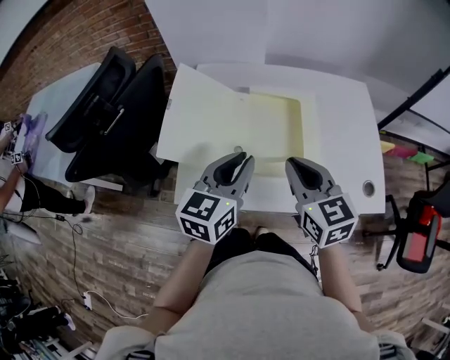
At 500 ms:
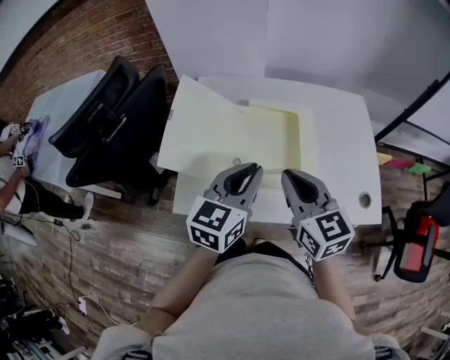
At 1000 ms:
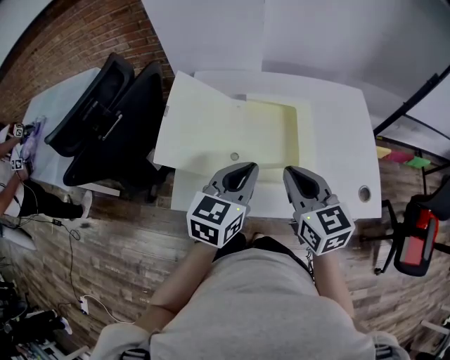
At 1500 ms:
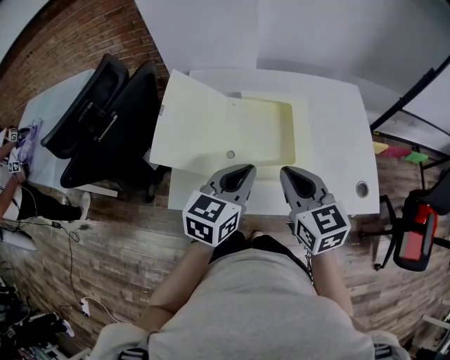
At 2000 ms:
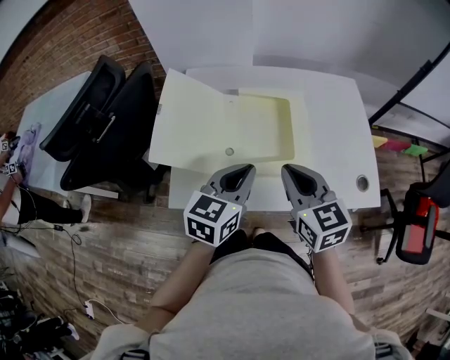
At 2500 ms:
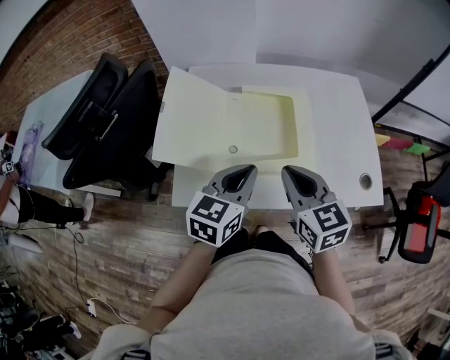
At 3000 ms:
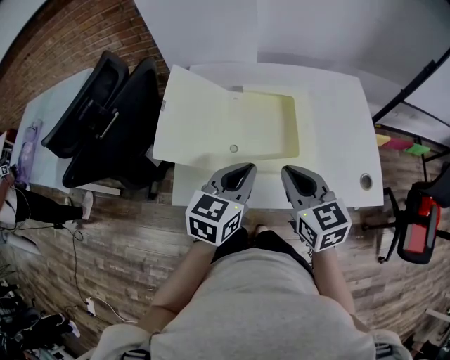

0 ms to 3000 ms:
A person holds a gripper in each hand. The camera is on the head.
0 ms to 3000 ms: The grippers move only a little.

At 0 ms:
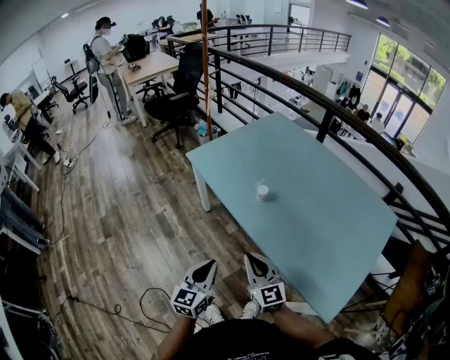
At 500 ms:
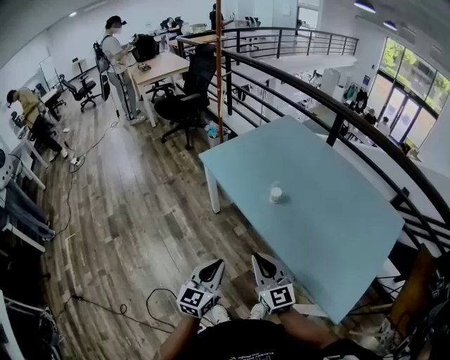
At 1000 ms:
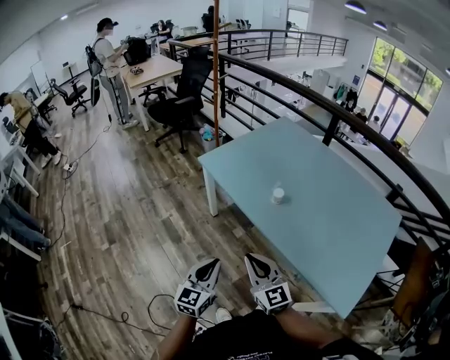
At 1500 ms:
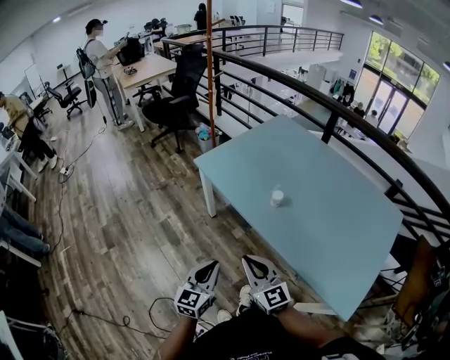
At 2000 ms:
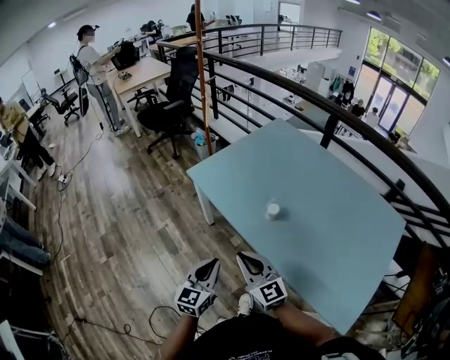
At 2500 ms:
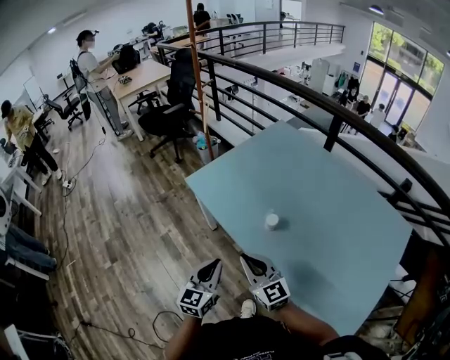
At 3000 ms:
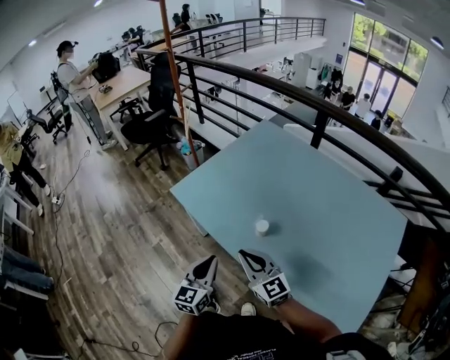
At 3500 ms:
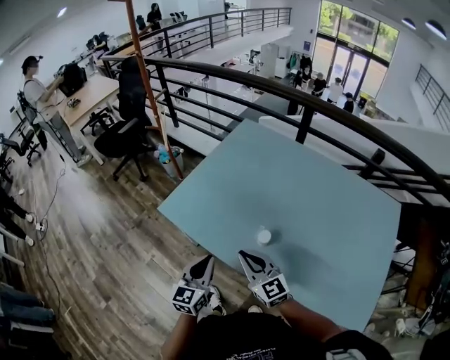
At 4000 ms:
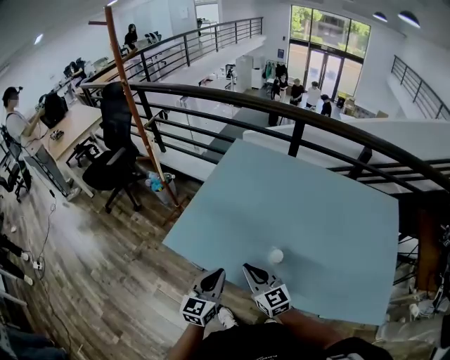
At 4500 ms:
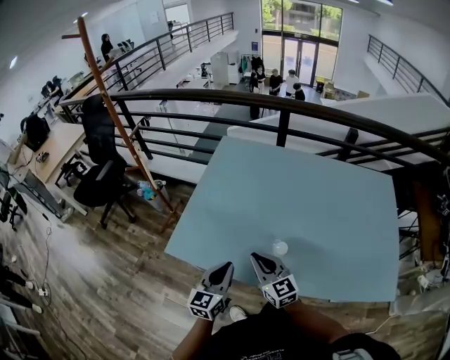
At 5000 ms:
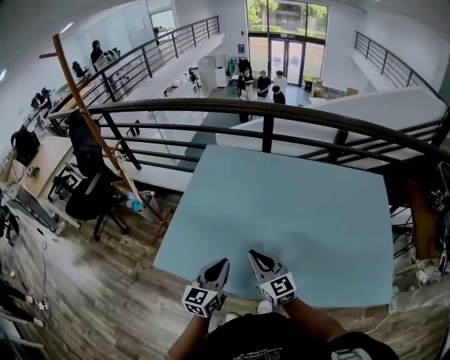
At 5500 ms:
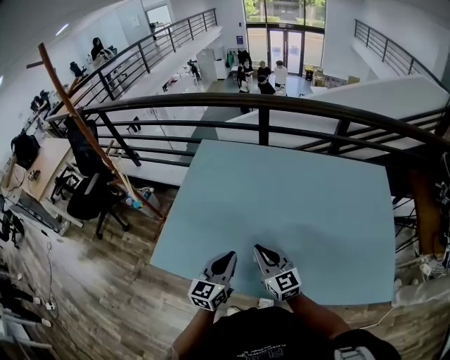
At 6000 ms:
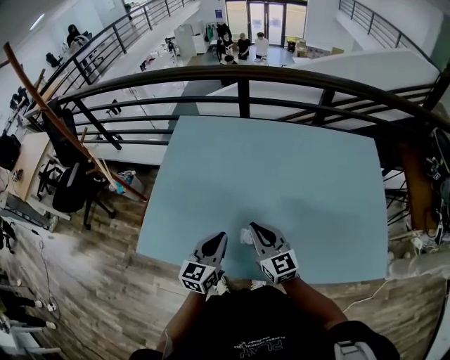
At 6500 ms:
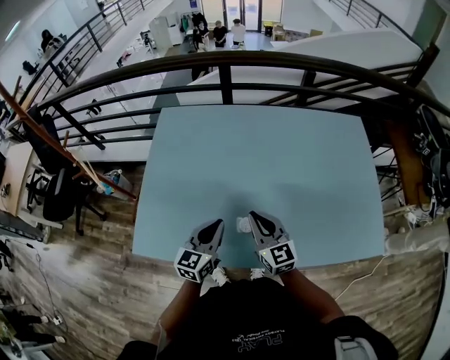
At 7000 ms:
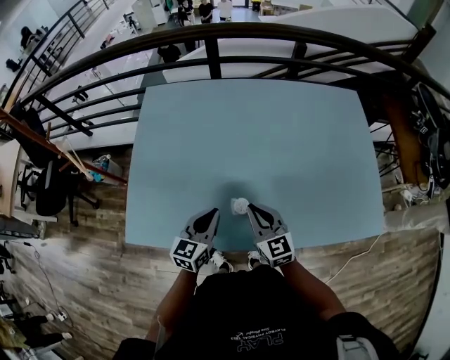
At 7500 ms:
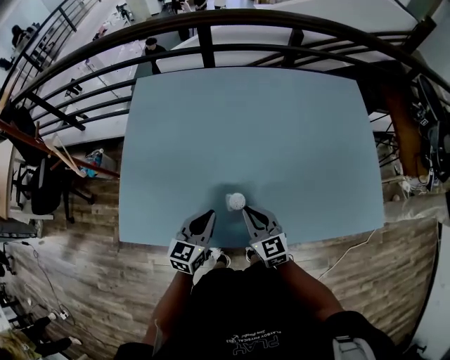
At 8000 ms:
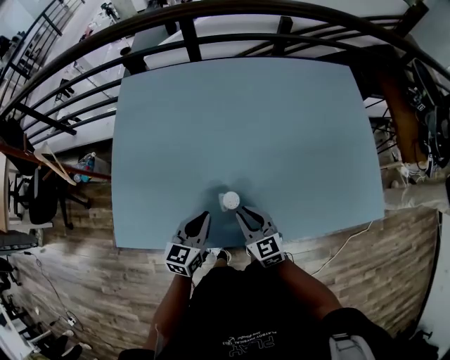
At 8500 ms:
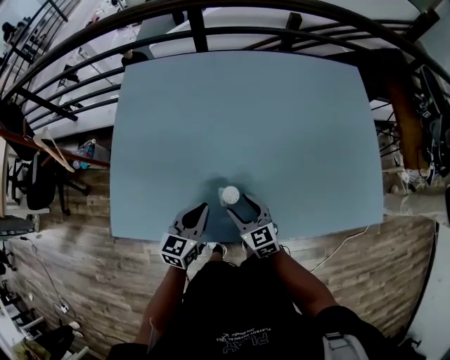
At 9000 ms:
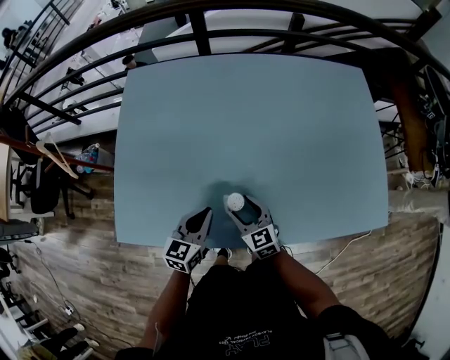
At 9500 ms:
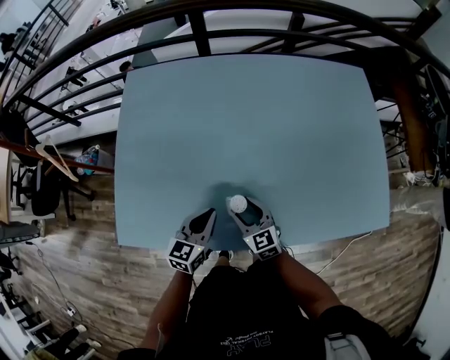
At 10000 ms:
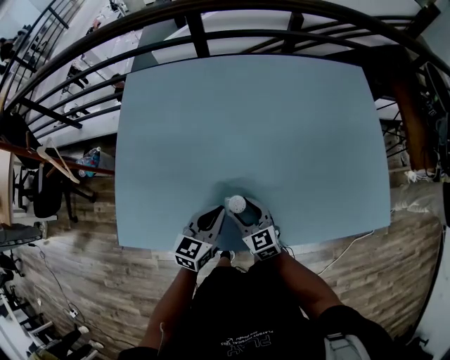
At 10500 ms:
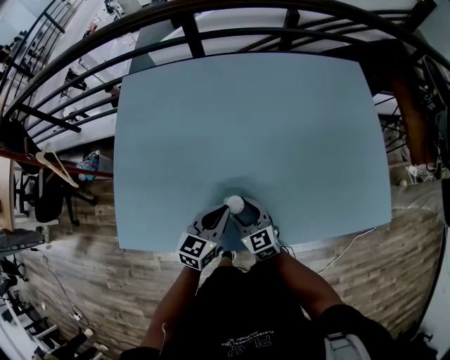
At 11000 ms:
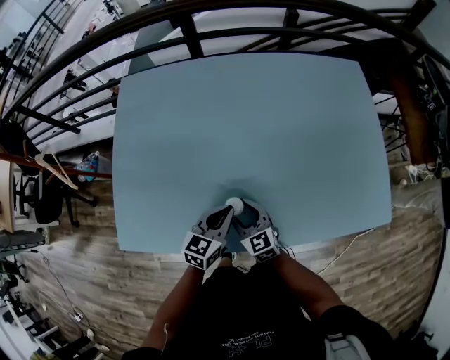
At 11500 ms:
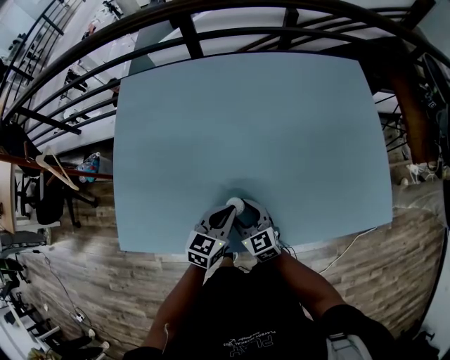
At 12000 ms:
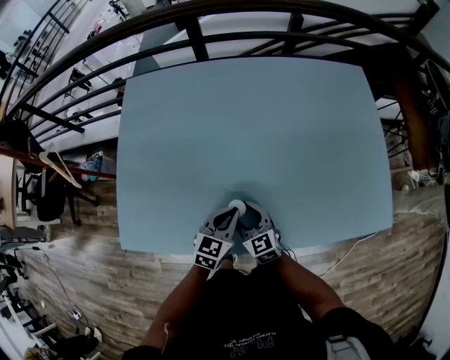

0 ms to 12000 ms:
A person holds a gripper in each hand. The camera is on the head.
0 ms to 2000 ms: The right gripper moves forward and to the left, some 15 cm. Meanwhile the left gripper goes some 15 cm forward.
2000 ms to 4000 ms: The two grippers go approximately 25 cm forward. The right gripper turns by roughly 30 degrees, while the left gripper swivels roughly 20 degrees.
4000 ms to 6000 ms: The two grippers go roughly 15 cm to the right and forward. The right gripper changes its angle by some 20 degrees.
6000 ms to 8000 ms: The grippers both shift downward by approximately 10 cm.
8000 ms to 10000 ms: The right gripper moves some 5 cm, and opens.
10000 ms to 12000 ms: The left gripper travels to the right by some 5 cm.

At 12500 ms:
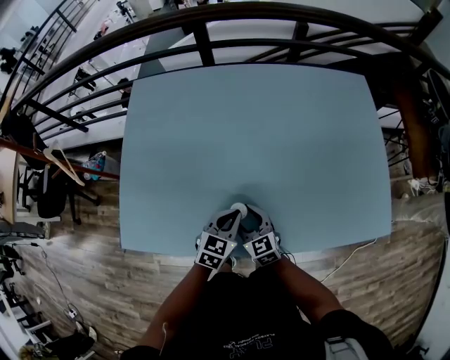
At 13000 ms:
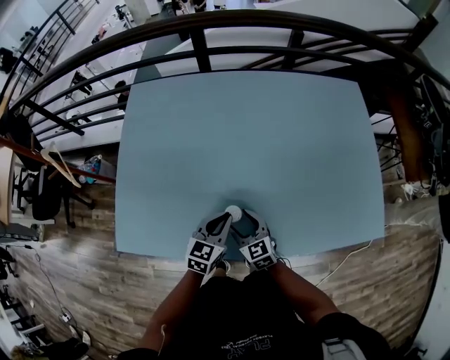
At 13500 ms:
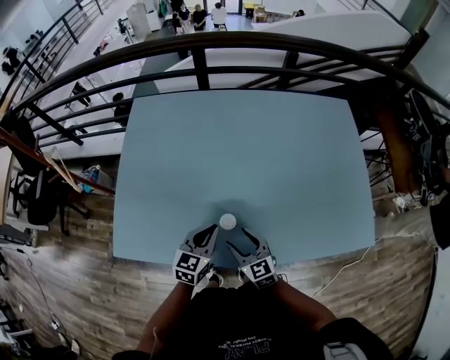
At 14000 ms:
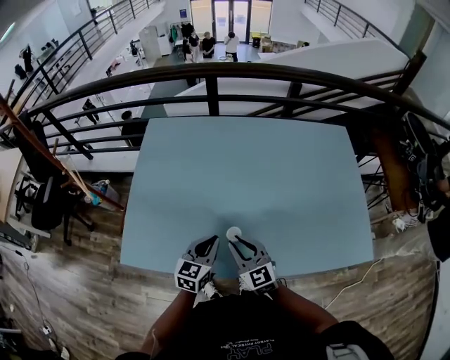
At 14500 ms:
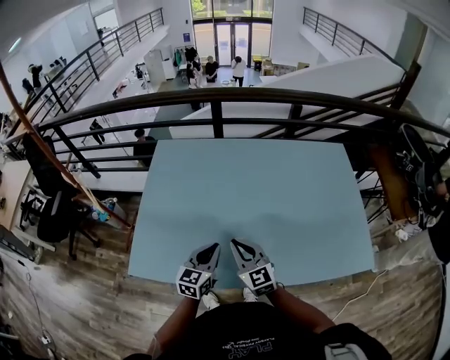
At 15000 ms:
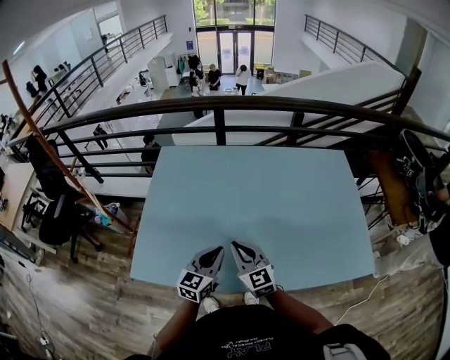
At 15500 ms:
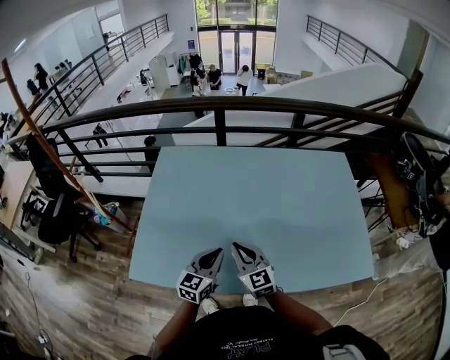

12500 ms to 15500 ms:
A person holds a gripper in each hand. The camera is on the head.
12500 ms to 14000 ms: The right gripper heads upward, covering about 15 cm, and closes up. The left gripper is displaced upward and to the left by approximately 10 cm.
14000 ms to 15500 ms: The left gripper goes approximately 5 cm upward; the right gripper shifts by some 5 cm.

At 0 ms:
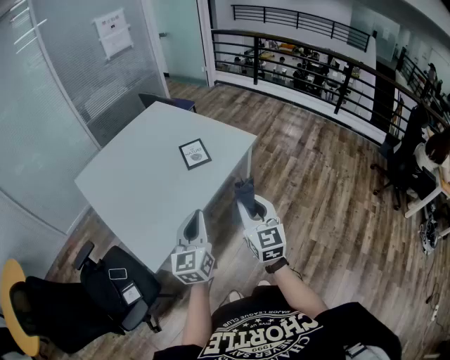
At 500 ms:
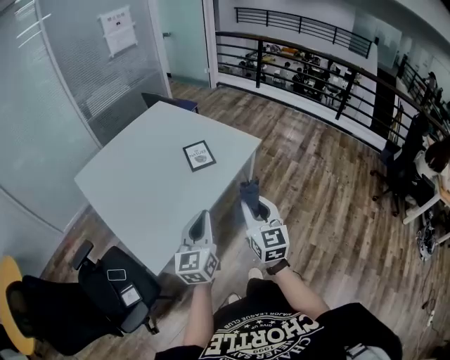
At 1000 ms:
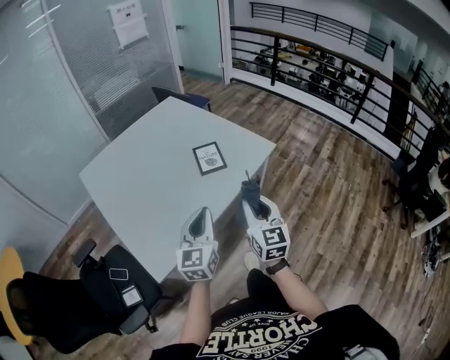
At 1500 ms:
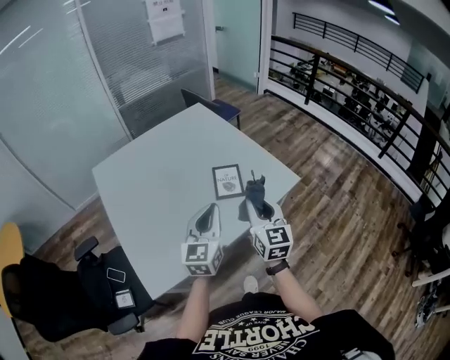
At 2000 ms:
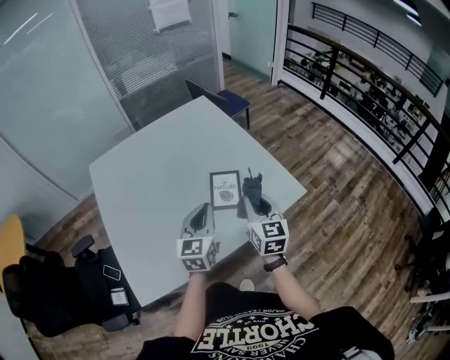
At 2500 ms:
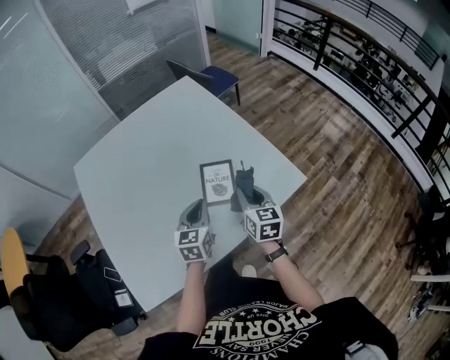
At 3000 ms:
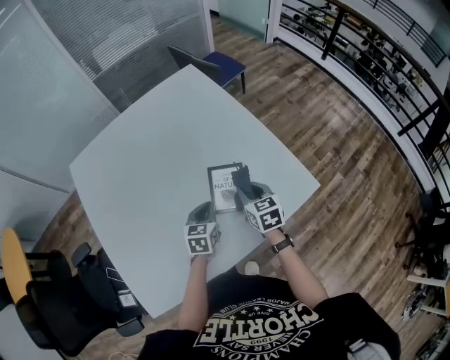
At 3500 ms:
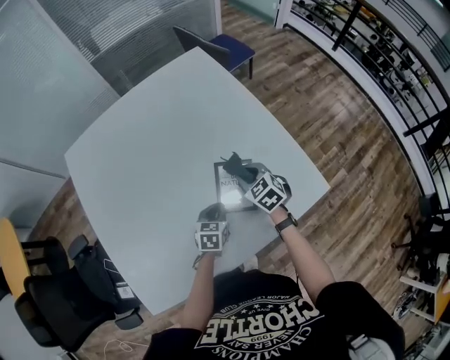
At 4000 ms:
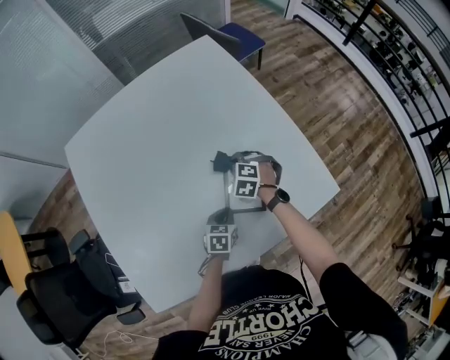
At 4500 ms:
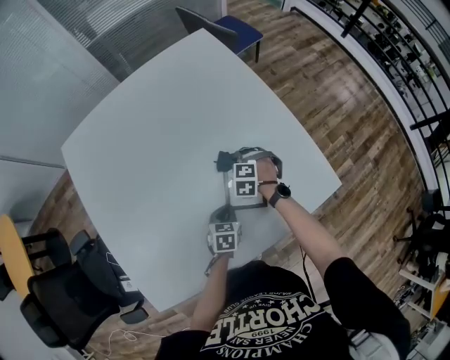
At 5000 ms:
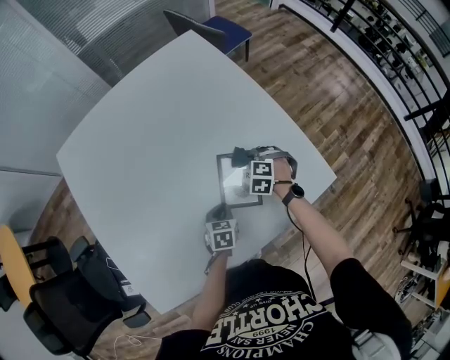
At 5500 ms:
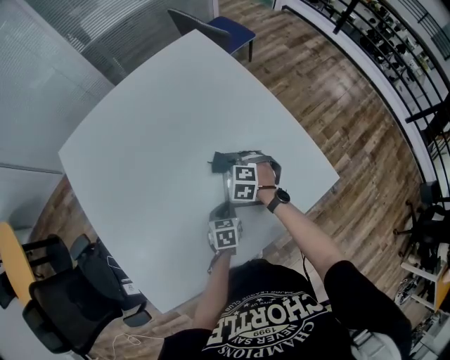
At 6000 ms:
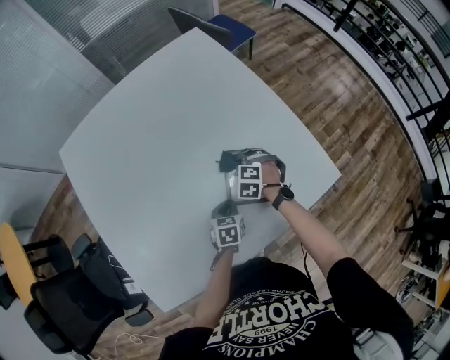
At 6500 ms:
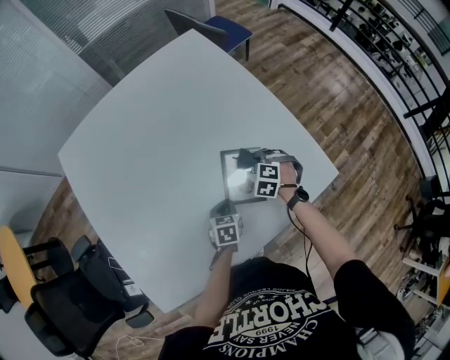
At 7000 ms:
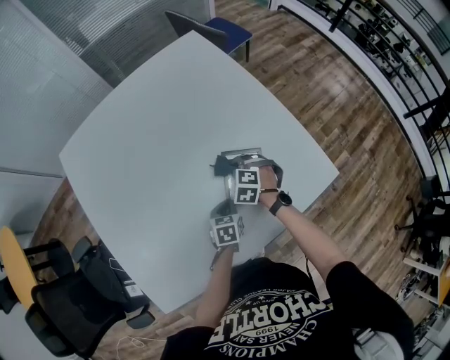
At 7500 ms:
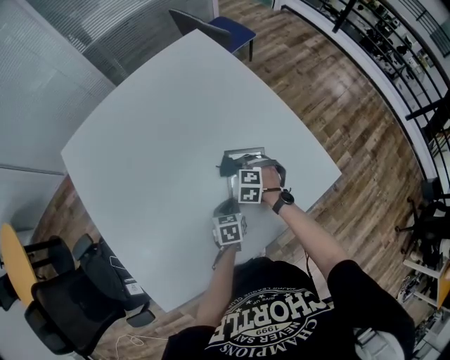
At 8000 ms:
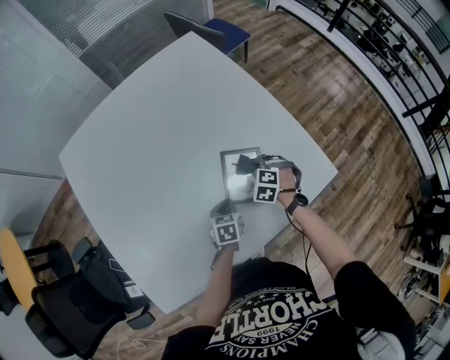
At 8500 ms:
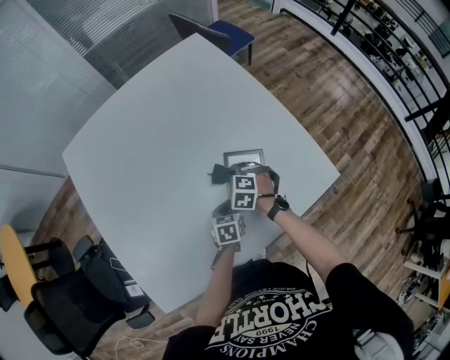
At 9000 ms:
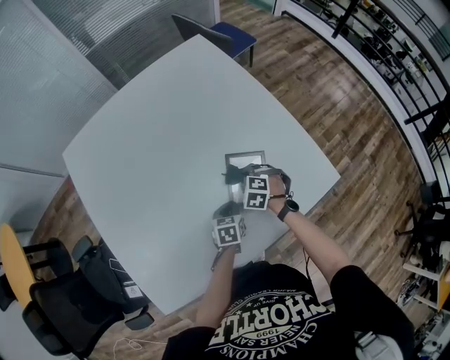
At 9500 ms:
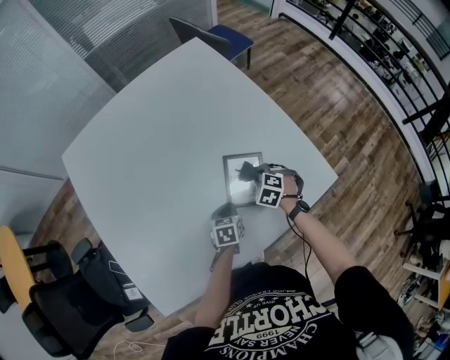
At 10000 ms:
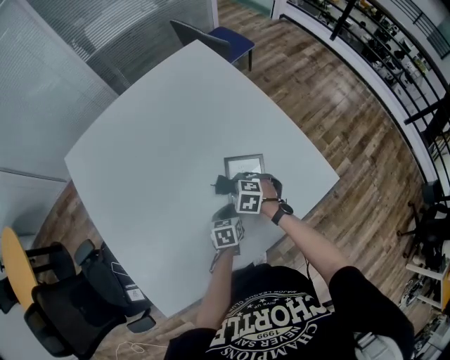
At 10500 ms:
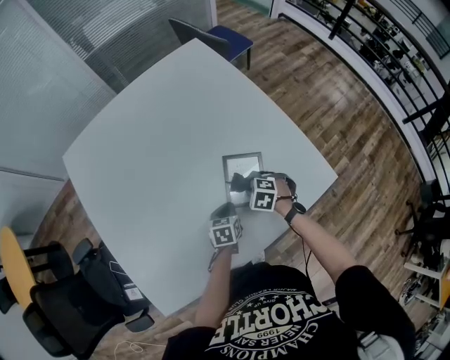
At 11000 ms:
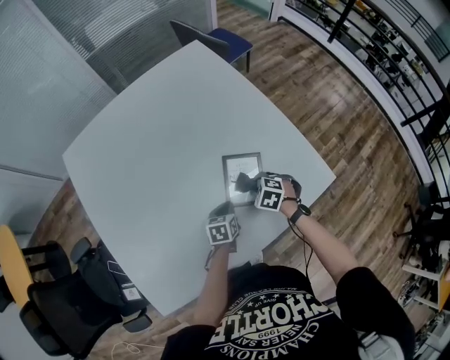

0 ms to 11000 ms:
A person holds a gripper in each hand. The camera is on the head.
0 ms to 2000 ms: The grippers both shift forward by about 40 cm. The left gripper changes its angle by approximately 20 degrees.
2000 ms to 3500 ms: The right gripper is displaced forward and downward by some 35 cm, and points its fingers some 40 degrees further downward; the left gripper moves downward and forward, about 30 cm, and tips its fingers downward by about 30 degrees.
3500 ms to 5500 ms: The left gripper is displaced downward by approximately 5 cm, while the right gripper travels downward and to the left by approximately 10 cm, and swivels about 40 degrees.
5500 ms to 7500 ms: The right gripper moves about 10 cm to the right and comes back.
7500 ms to 9000 ms: The right gripper swings left and right, roughly 10 cm each way, with 2 reversals.
9000 ms to 11000 ms: The right gripper swings left and right, roughly 10 cm each way, with 2 reversals.
